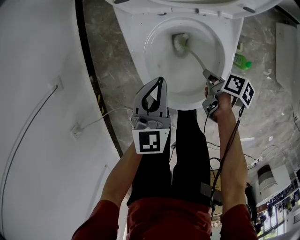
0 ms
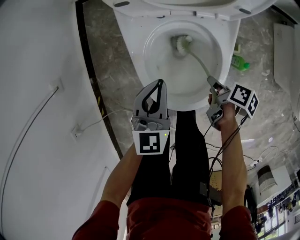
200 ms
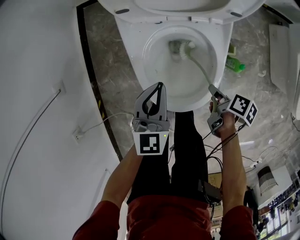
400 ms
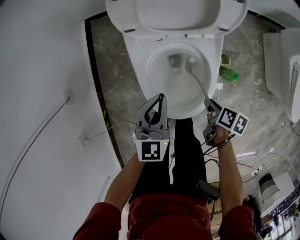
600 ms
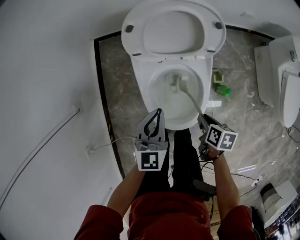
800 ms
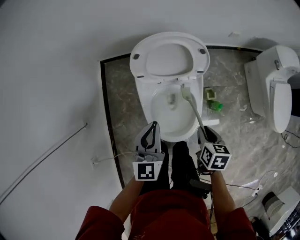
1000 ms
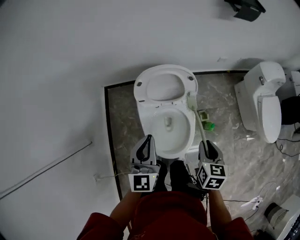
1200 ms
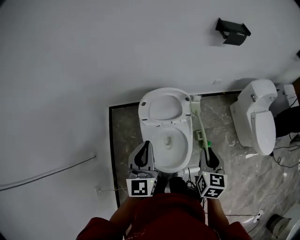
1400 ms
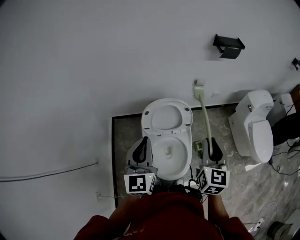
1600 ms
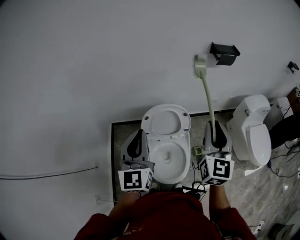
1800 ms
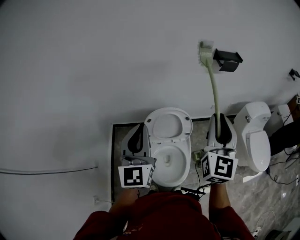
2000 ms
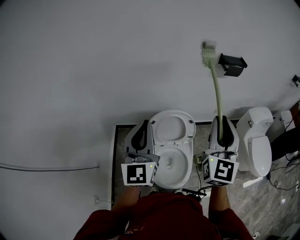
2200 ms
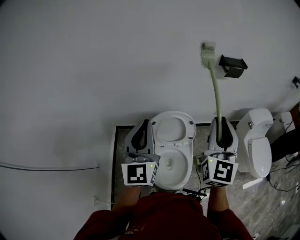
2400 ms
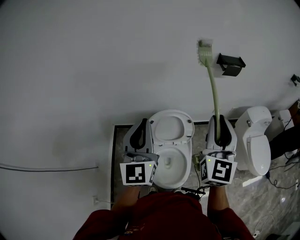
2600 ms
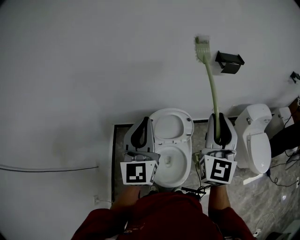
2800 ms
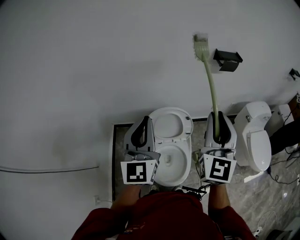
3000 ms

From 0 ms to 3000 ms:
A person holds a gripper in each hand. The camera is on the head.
From 0 ms to 1600 ms: The two grippers go some 50 cm upward. The left gripper swivels roughly 20 degrees, while the right gripper tips its fingers upward by about 50 degrees.
From 1600 ms to 3000 ms: Both grippers travel together upward, roughly 15 cm. The right gripper turns by some 30 degrees.

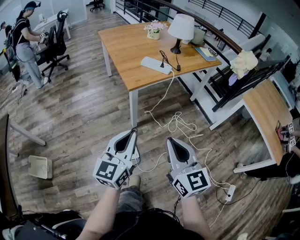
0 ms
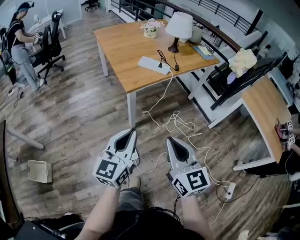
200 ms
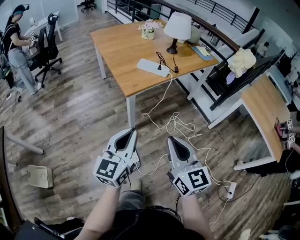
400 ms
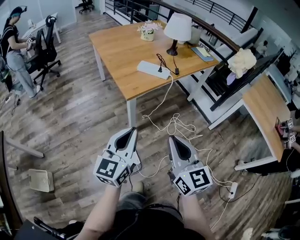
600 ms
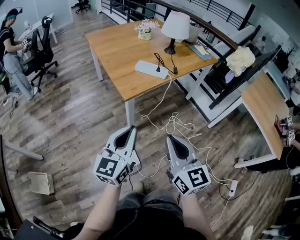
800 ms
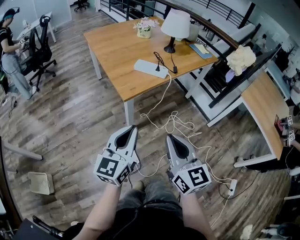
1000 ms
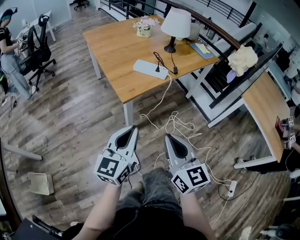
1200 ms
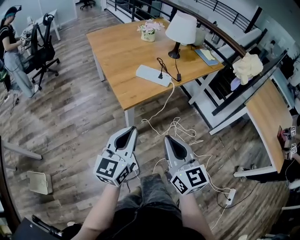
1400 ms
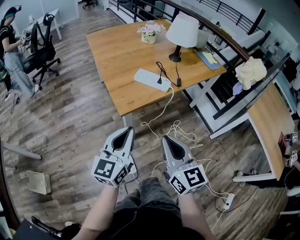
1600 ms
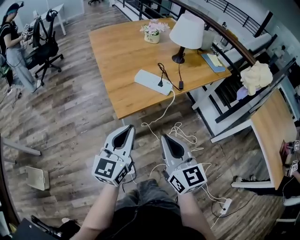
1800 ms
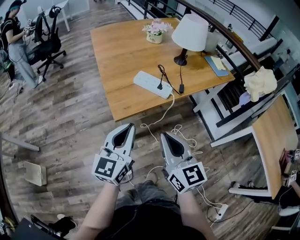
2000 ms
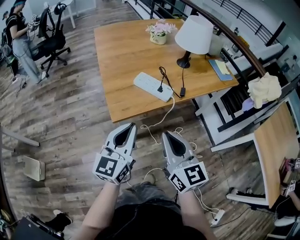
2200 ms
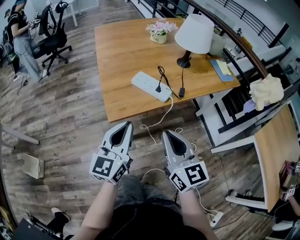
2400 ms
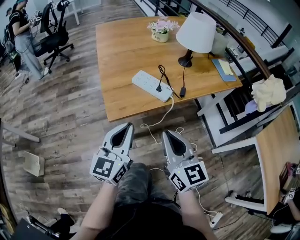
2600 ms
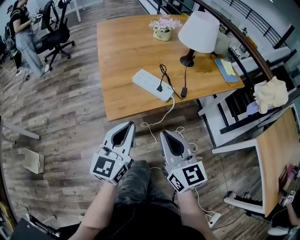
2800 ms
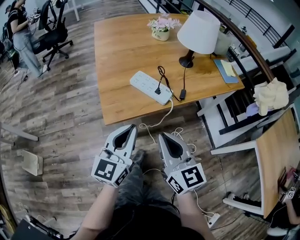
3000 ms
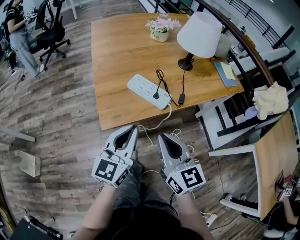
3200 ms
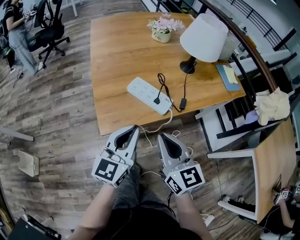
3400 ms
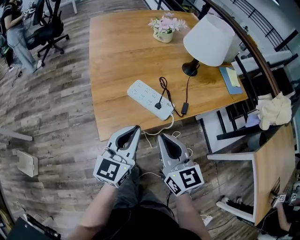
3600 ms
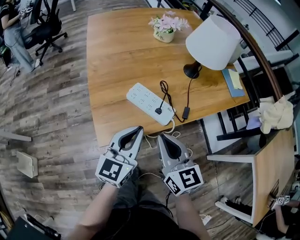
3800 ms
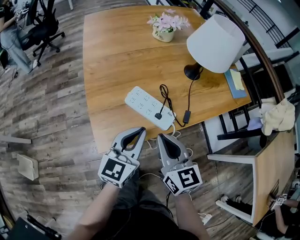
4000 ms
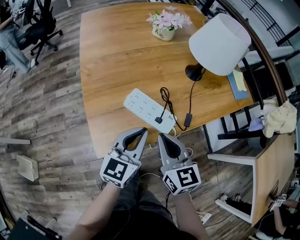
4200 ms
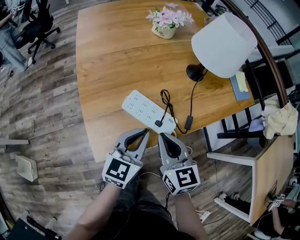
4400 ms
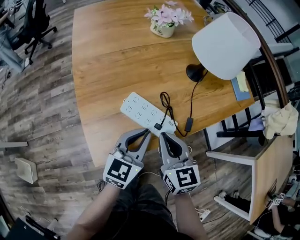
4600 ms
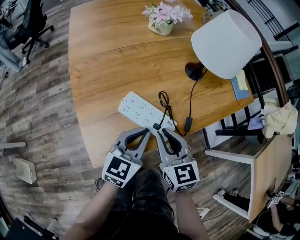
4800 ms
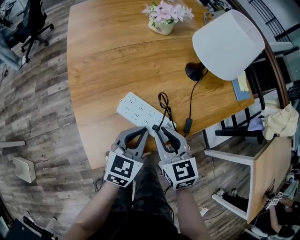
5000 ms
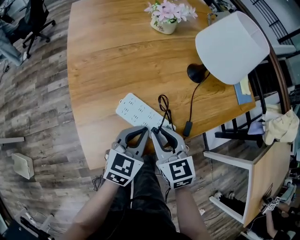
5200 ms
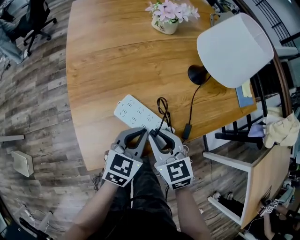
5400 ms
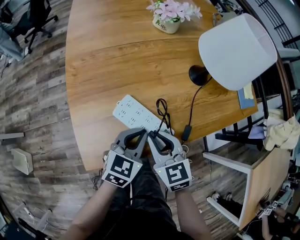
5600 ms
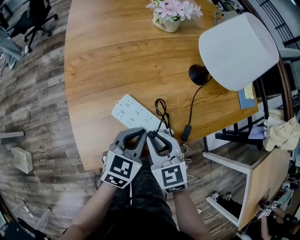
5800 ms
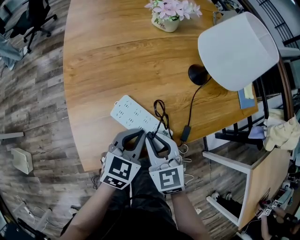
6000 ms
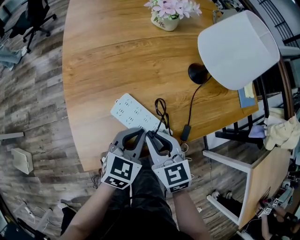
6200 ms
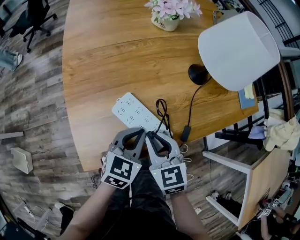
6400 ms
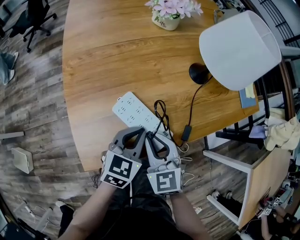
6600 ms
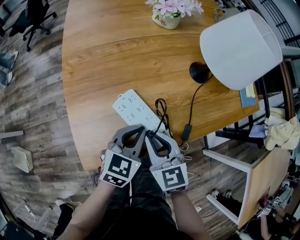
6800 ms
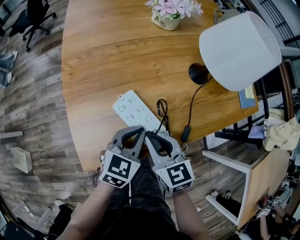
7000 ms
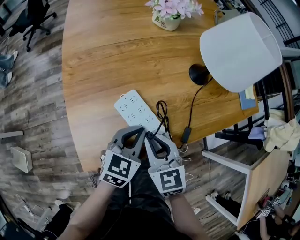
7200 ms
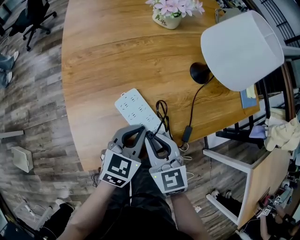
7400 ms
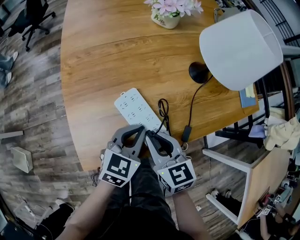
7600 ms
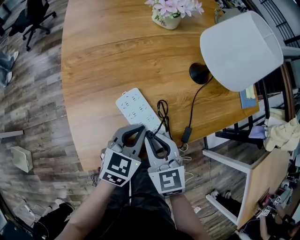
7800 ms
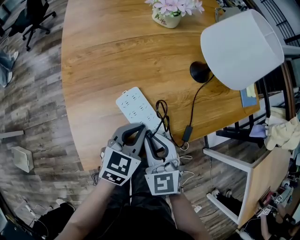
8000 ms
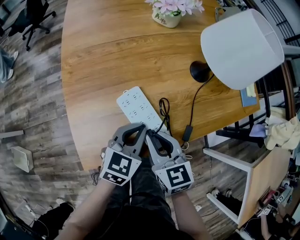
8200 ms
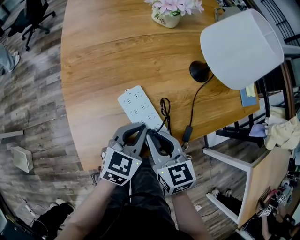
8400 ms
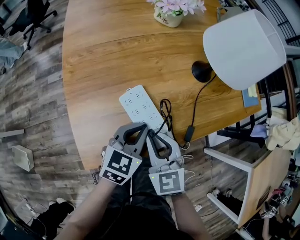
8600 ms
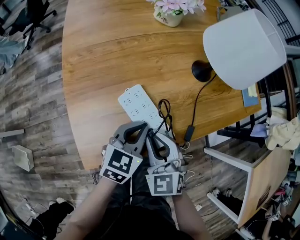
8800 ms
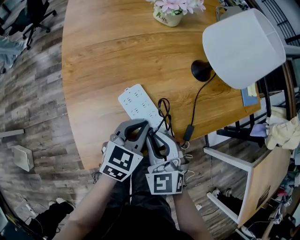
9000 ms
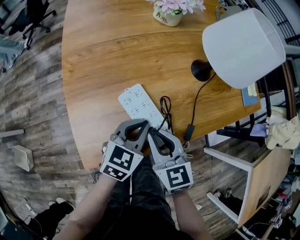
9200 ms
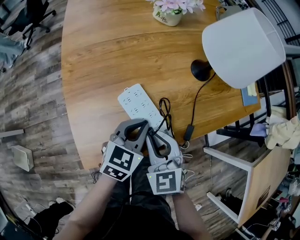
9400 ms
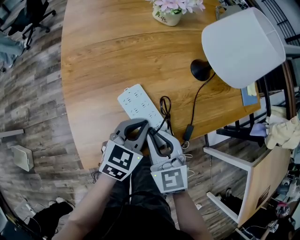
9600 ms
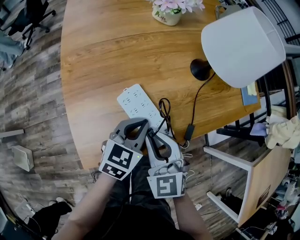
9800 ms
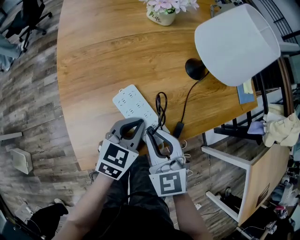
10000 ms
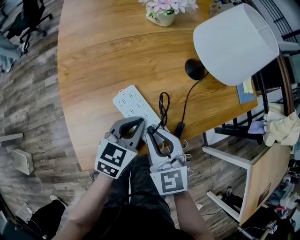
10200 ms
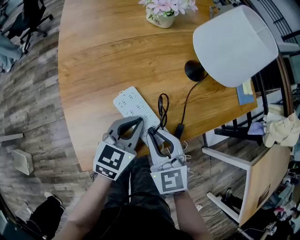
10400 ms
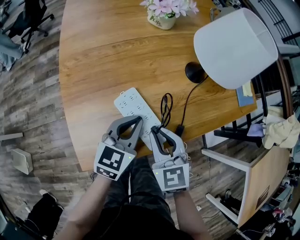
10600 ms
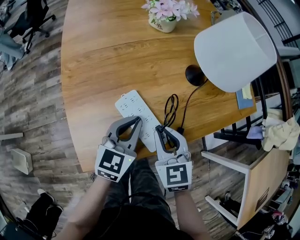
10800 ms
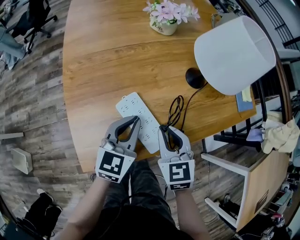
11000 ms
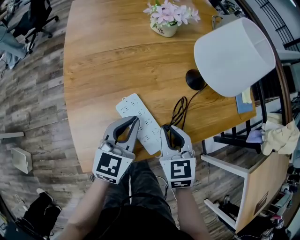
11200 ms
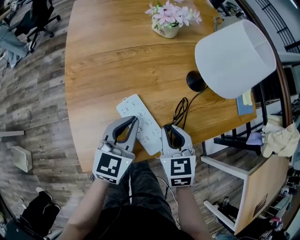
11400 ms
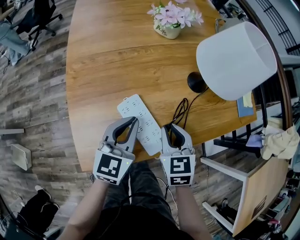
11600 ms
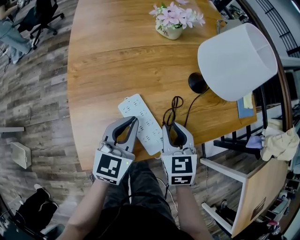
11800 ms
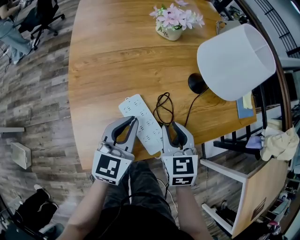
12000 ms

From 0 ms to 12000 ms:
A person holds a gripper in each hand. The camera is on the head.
From 0 ms to 1600 ms: The grippers both shift forward by roughly 20 cm.
From 1600 ms to 3000 ms: The grippers both shift forward and to the right by about 15 cm.
From 3000 ms to 4400 ms: The two grippers go approximately 20 cm forward and downward.
From 4400 ms to 6000 ms: Both grippers move downward, some 5 cm. The right gripper changes its angle by approximately 20 degrees.
From 6000 ms to 7600 ms: The grippers make only small movements.
From 7600 ms to 9000 ms: The right gripper turns by some 30 degrees.
From 10400 ms to 12000 ms: The right gripper moves forward, some 5 cm. The left gripper shifts by approximately 5 cm.

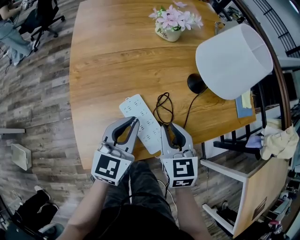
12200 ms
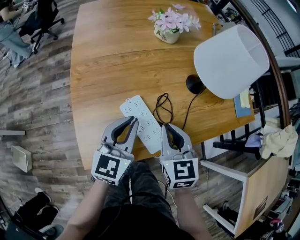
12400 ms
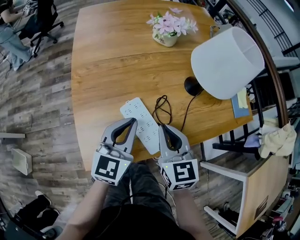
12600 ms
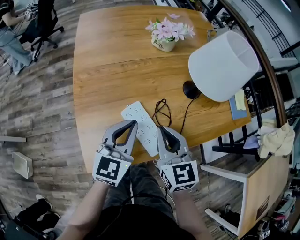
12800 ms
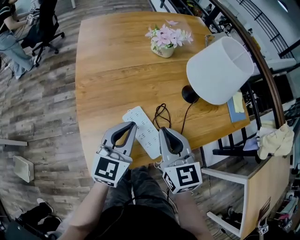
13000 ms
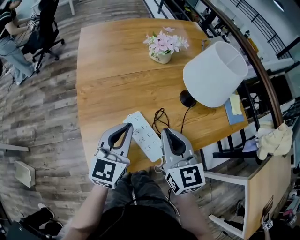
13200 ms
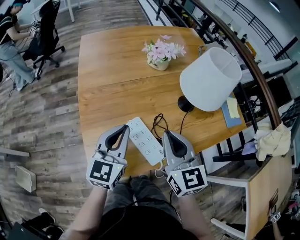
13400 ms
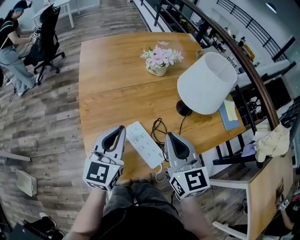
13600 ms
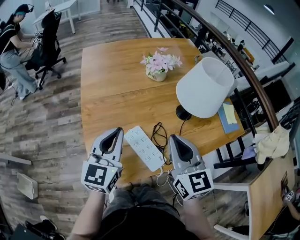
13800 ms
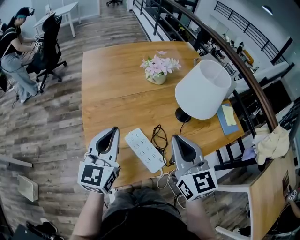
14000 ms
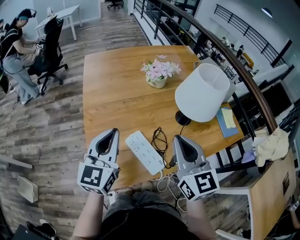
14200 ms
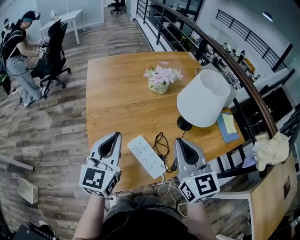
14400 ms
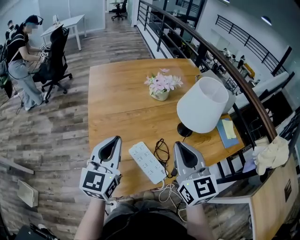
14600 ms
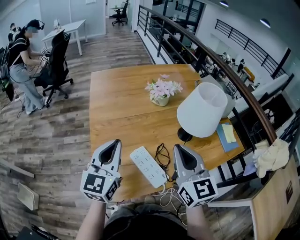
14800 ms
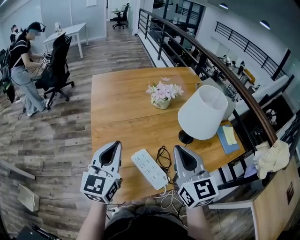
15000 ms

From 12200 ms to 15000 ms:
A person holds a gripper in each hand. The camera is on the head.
From 12200 ms to 13600 ms: The left gripper heads upward and to the left, covering about 10 cm. Meanwhile the right gripper travels upward by approximately 15 cm, and turns by roughly 20 degrees.
From 13600 ms to 15000 ms: Both grippers travel together upward, approximately 5 cm.

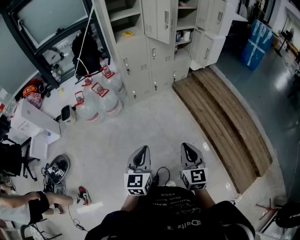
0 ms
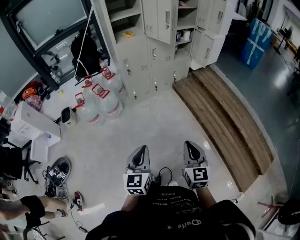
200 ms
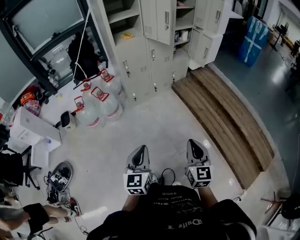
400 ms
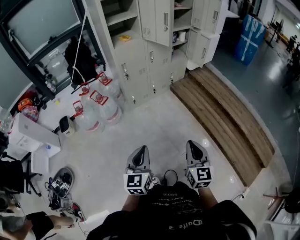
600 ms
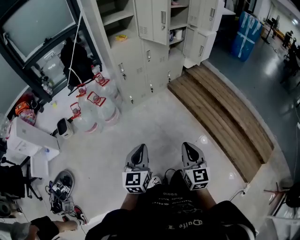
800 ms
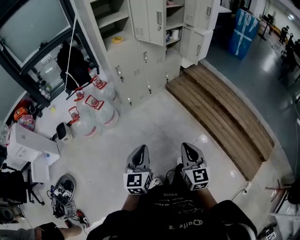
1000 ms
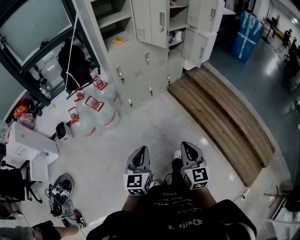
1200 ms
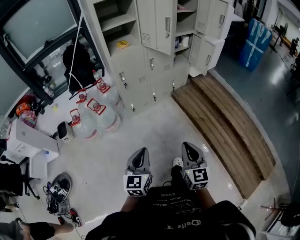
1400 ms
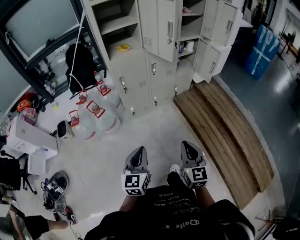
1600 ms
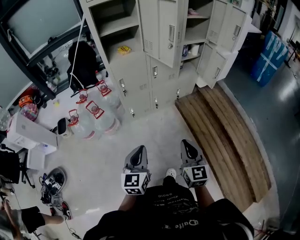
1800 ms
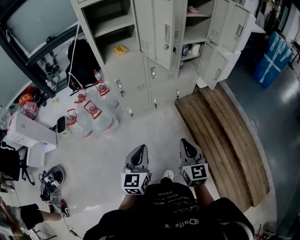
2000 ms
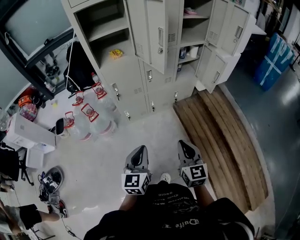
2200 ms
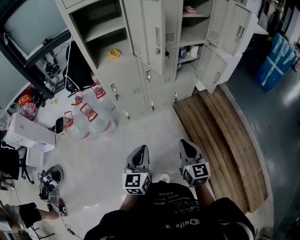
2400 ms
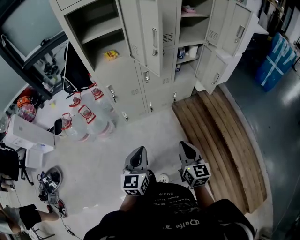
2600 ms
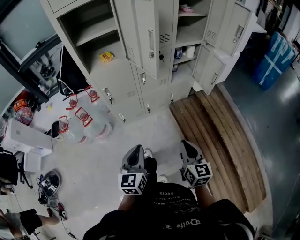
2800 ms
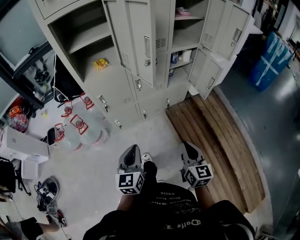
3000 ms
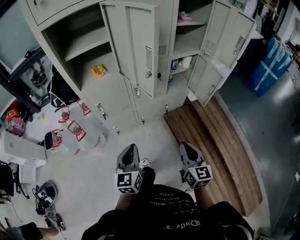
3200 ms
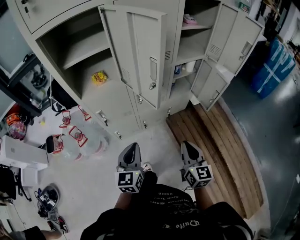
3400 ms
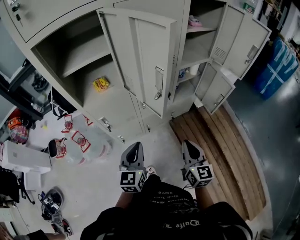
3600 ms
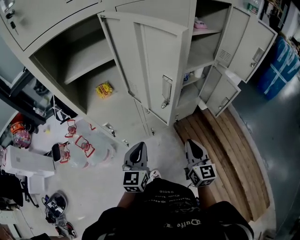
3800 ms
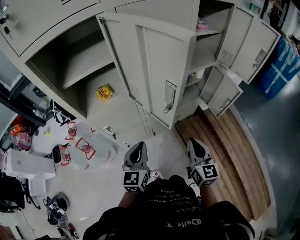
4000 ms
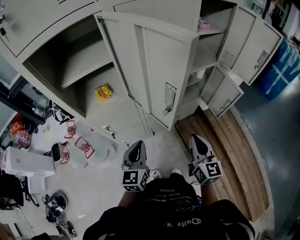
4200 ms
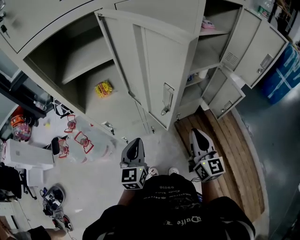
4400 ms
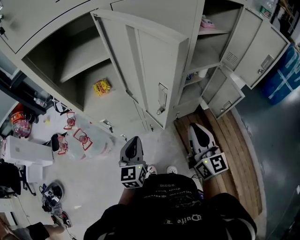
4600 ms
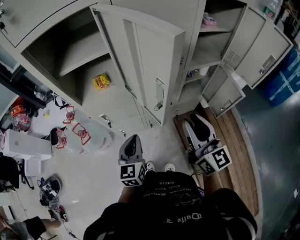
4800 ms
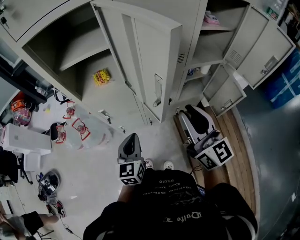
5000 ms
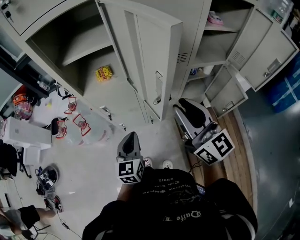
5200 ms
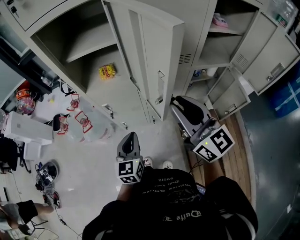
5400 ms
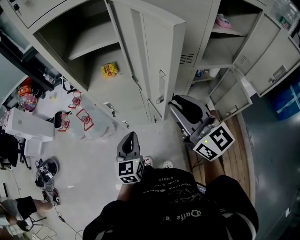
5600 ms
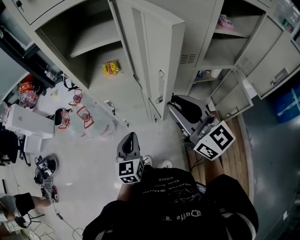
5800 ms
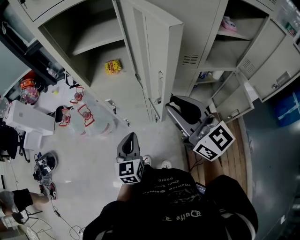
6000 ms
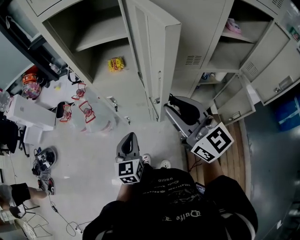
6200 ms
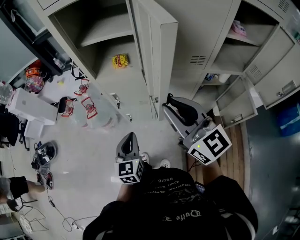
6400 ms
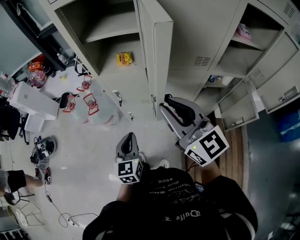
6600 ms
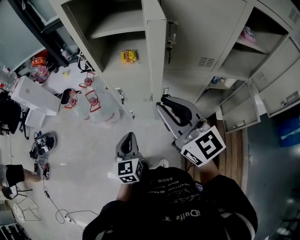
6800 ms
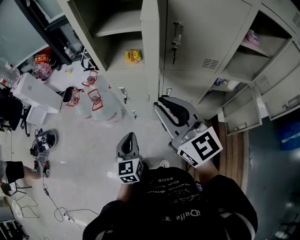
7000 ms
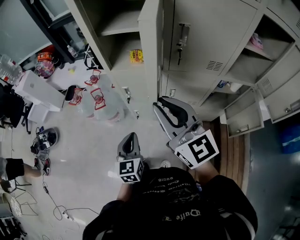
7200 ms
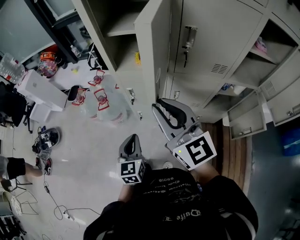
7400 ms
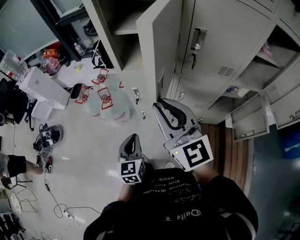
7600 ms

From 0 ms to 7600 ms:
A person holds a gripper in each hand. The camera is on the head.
From 0 ms to 1600 ms: Both grippers move forward, about 20 cm.
From 1600 ms to 3000 ms: Both grippers move forward and to the right, about 25 cm.
From 3000 ms to 4600 ms: The left gripper shifts roughly 25 cm forward; the right gripper is displaced forward and upward by some 30 cm.
From 4600 ms to 6000 ms: The right gripper shifts roughly 10 cm upward, swivels some 40 degrees, and opens its fingers.
From 6000 ms to 7600 ms: The grippers both shift to the left by roughly 10 cm.
